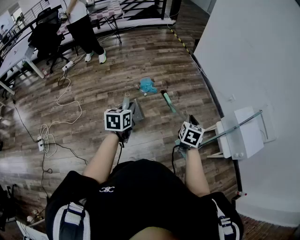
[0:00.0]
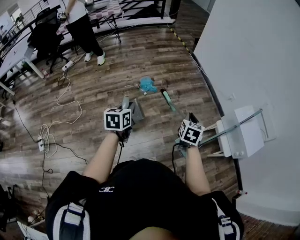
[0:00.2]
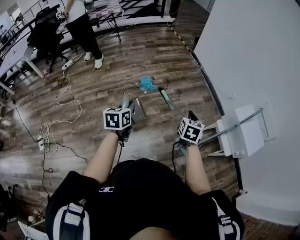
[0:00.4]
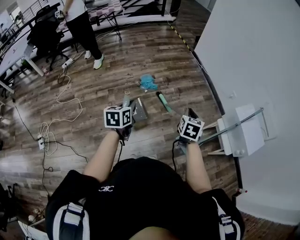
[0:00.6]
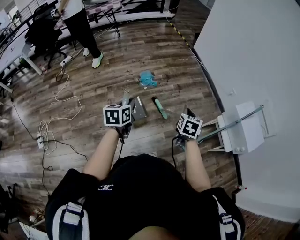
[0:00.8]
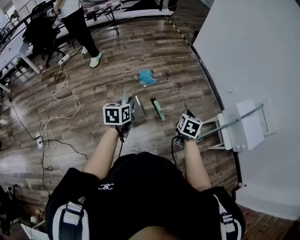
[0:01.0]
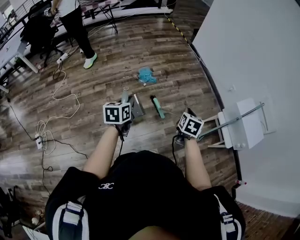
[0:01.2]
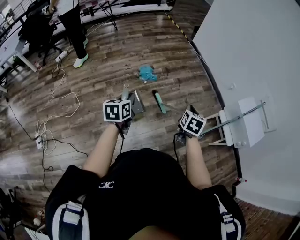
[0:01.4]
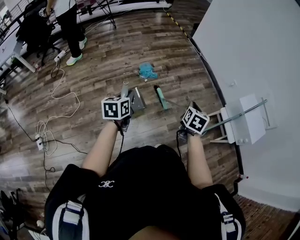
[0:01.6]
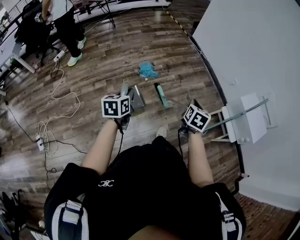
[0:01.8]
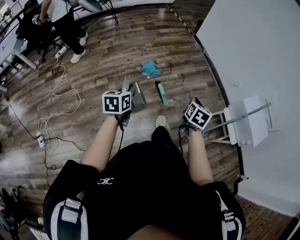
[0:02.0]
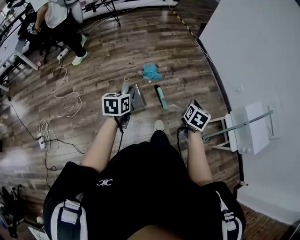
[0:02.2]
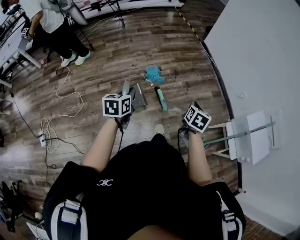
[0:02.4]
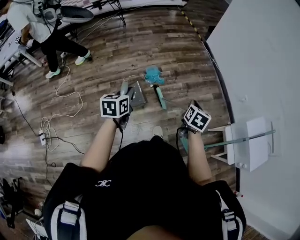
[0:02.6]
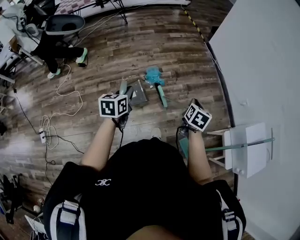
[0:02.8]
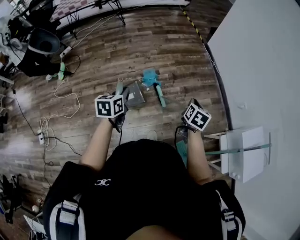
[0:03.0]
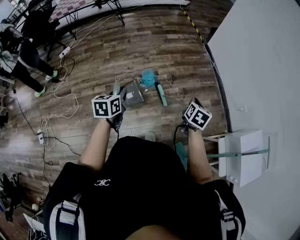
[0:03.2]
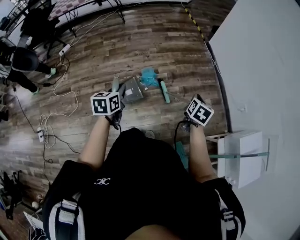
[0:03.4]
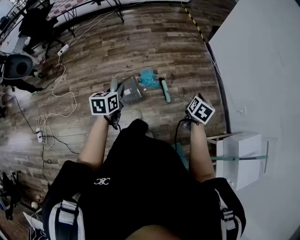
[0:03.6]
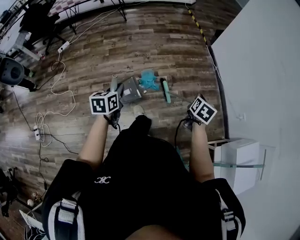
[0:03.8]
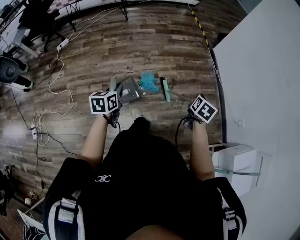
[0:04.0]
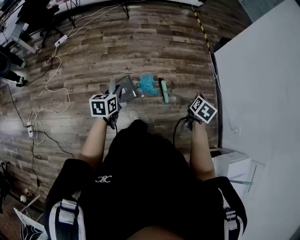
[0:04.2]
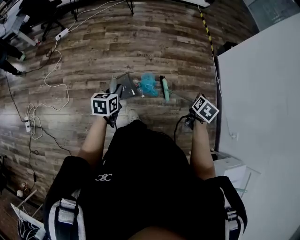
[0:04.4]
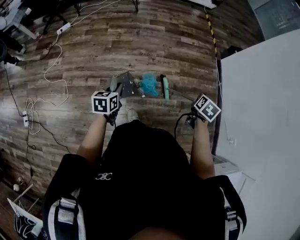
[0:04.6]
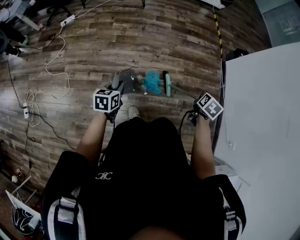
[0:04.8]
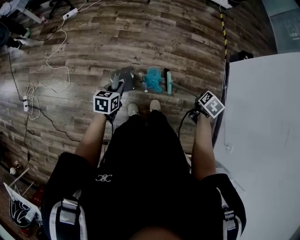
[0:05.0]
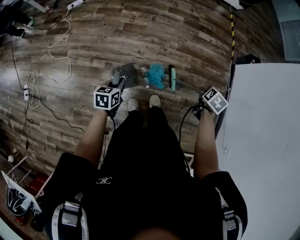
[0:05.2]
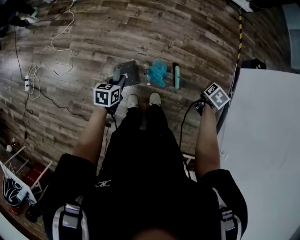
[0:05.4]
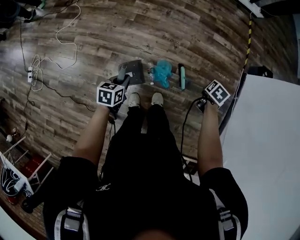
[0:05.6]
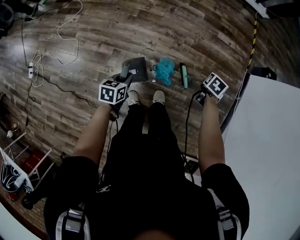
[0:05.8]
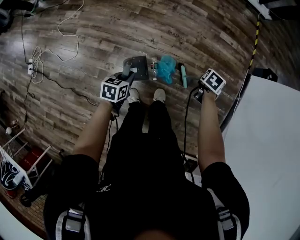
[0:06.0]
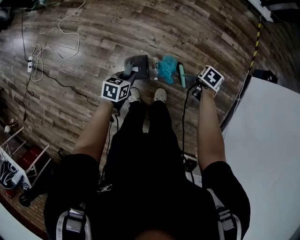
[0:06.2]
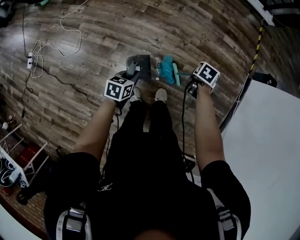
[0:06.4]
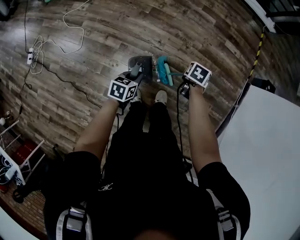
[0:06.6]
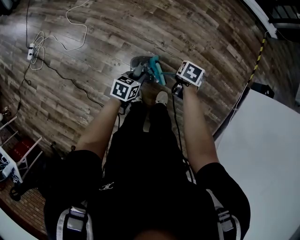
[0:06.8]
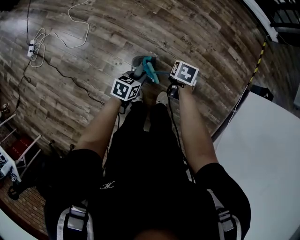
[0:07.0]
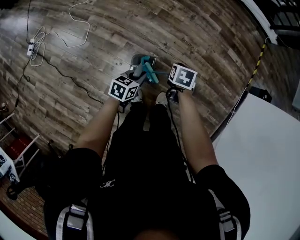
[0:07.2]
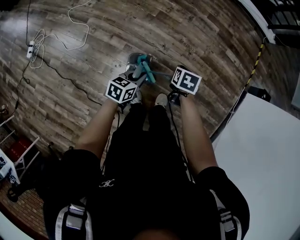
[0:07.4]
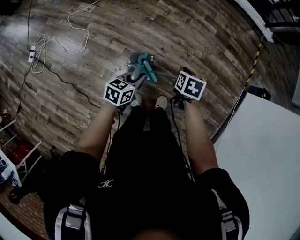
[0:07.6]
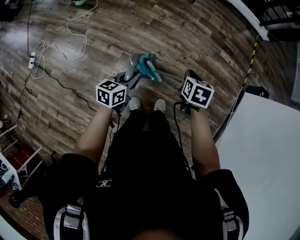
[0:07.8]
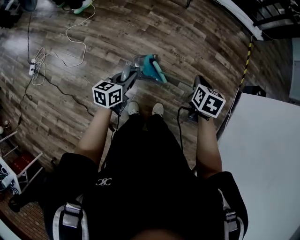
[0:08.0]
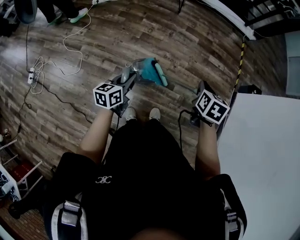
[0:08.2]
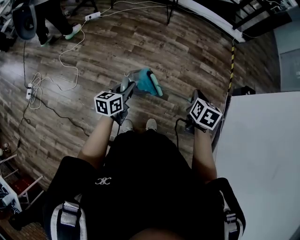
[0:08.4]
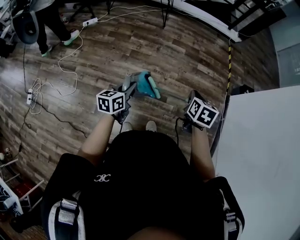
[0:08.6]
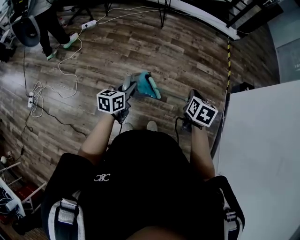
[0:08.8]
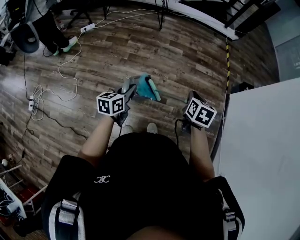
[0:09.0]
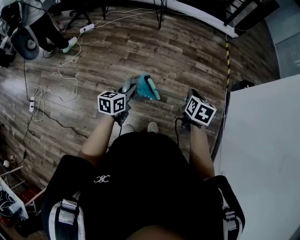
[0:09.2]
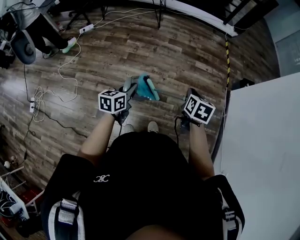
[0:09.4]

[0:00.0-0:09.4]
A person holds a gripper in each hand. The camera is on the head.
0:00.0 to 0:01.6: The two grippers go approximately 10 cm to the left.
0:01.6 to 0:03.2: Both grippers move forward, some 30 cm.
0:03.2 to 0:04.8: The left gripper heads forward, to the left and downward, covering roughly 30 cm; the right gripper is displaced forward and to the left by some 35 cm.
0:04.8 to 0:06.2: The left gripper shifts about 15 cm downward; the right gripper heads downward, forward and to the left, covering approximately 30 cm, and rotates some 30 degrees.
0:06.2 to 0:07.8: The left gripper moves upward, some 10 cm, and rotates some 20 degrees. Meanwhile the right gripper moves about 25 cm, and rotates roughly 30 degrees.
0:07.8 to 0:09.4: The left gripper travels to the right and upward by some 15 cm. The right gripper heads to the right and upward, covering about 25 cm, and turns by about 20 degrees.

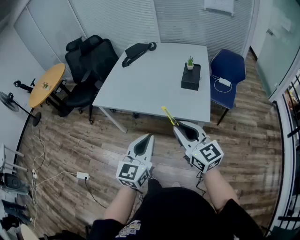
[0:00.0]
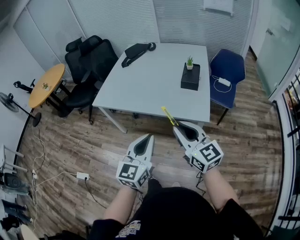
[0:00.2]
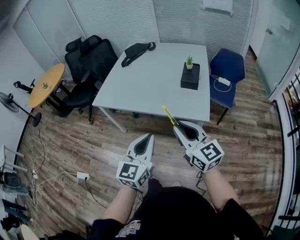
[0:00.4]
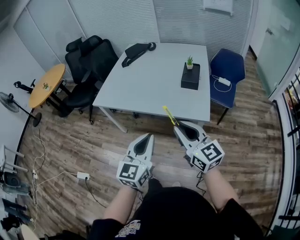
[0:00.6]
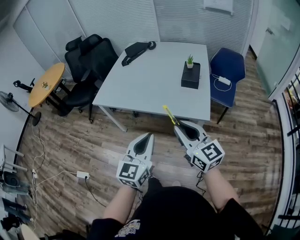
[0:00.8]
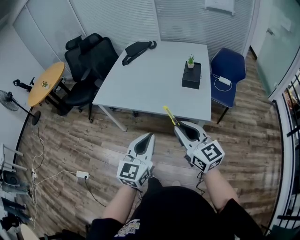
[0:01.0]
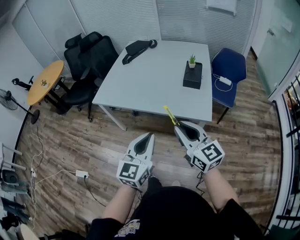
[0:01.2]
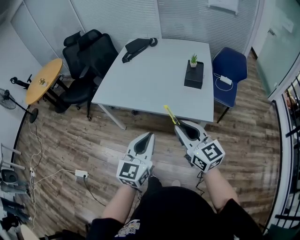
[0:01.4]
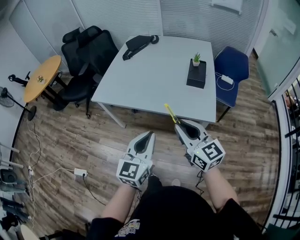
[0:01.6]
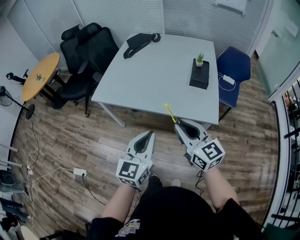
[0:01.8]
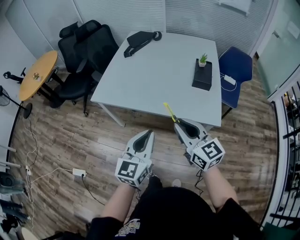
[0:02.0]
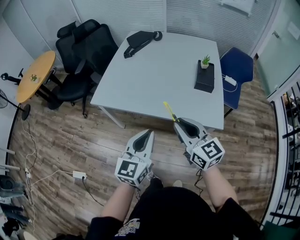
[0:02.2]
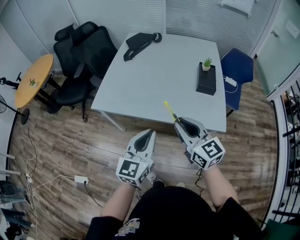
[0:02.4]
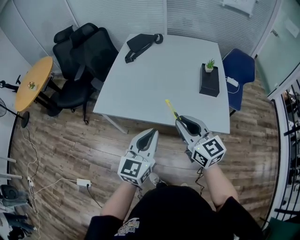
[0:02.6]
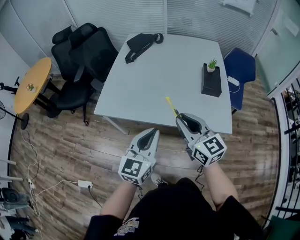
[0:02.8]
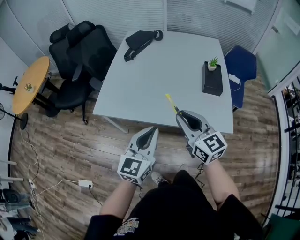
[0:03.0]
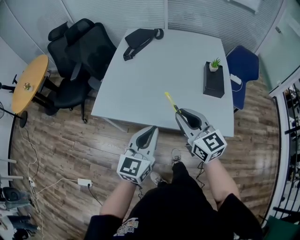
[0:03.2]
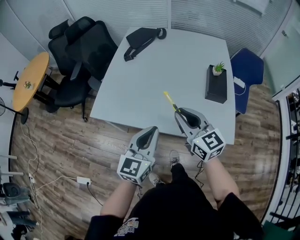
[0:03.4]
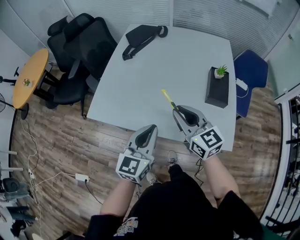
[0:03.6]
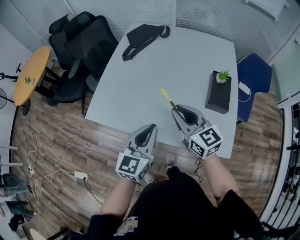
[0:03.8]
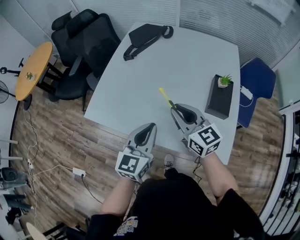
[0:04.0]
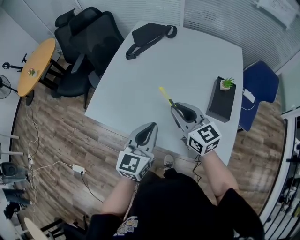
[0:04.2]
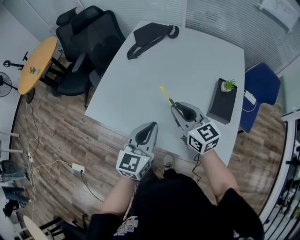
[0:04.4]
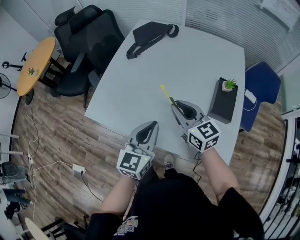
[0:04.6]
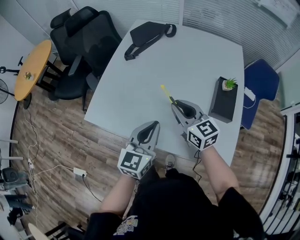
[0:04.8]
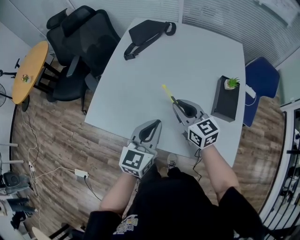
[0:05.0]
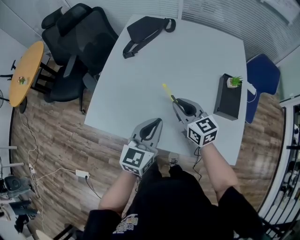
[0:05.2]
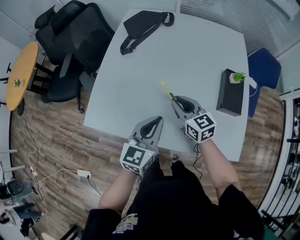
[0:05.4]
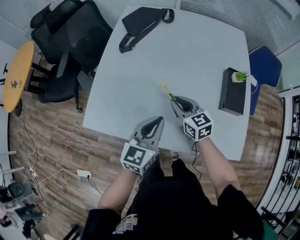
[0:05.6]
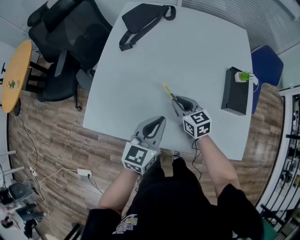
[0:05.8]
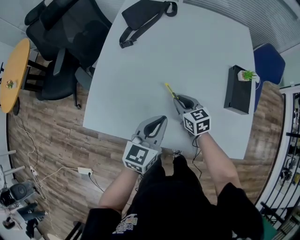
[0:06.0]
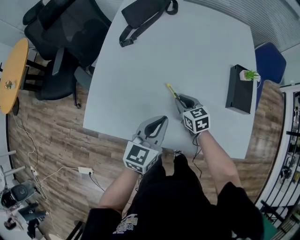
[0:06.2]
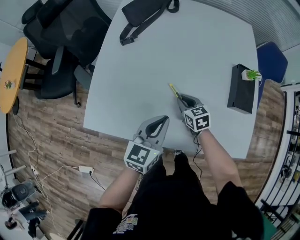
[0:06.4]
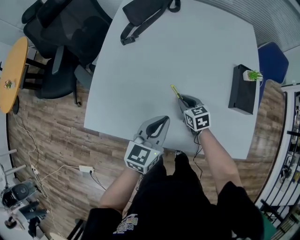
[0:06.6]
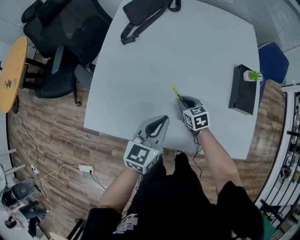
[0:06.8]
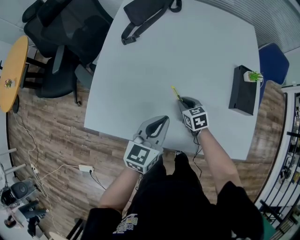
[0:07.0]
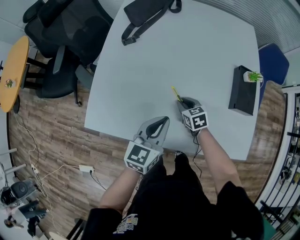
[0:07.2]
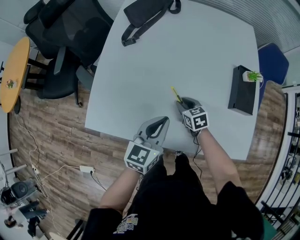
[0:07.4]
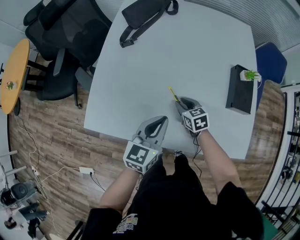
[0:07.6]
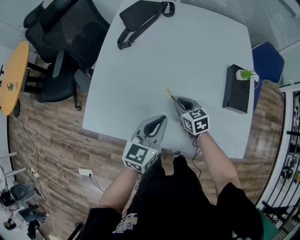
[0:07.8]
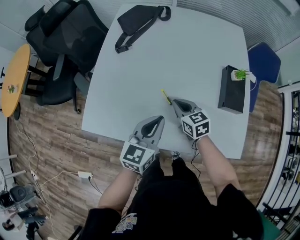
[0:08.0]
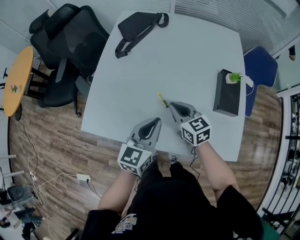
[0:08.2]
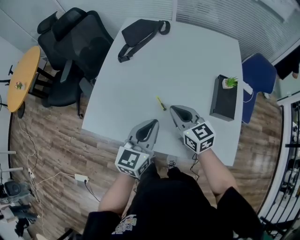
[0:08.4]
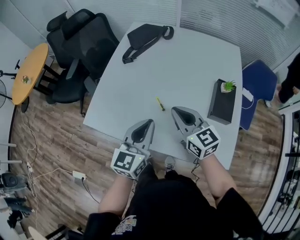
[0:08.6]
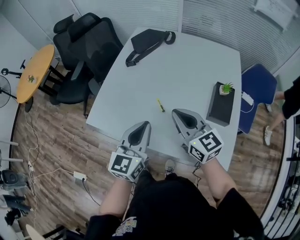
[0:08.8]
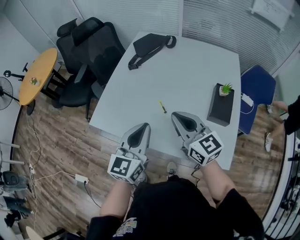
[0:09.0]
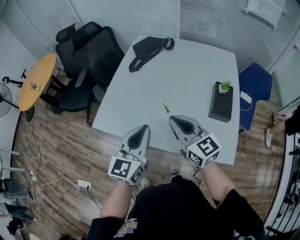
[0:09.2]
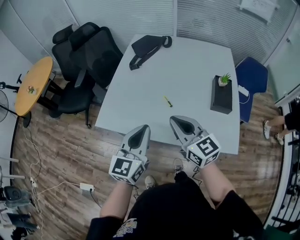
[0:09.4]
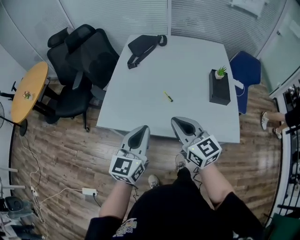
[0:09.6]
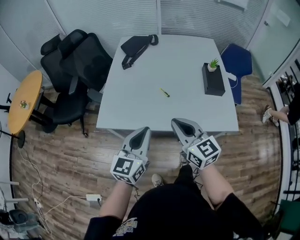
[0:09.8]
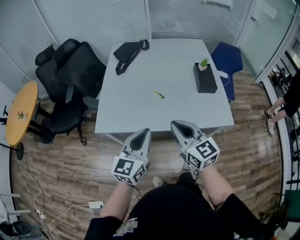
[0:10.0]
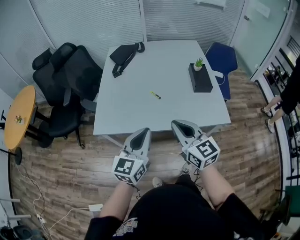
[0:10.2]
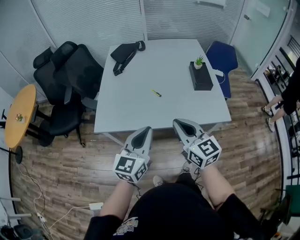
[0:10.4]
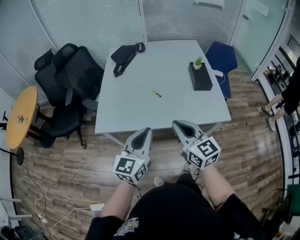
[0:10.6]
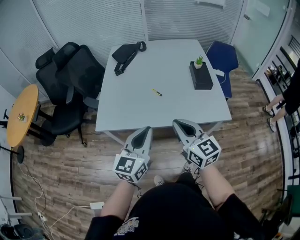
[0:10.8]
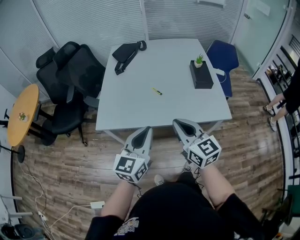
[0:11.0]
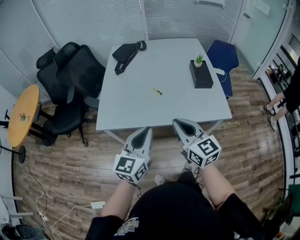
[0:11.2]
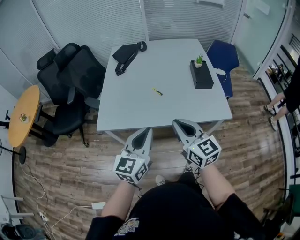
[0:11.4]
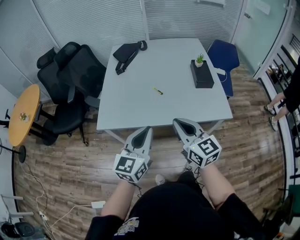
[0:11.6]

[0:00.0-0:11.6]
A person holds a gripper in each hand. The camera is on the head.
0:00.0 to 0:01.4: The grippers move only a little.
0:01.4 to 0:02.8: Both grippers move forward and to the left, approximately 20 cm.
0:02.8 to 0:04.4: The right gripper moves forward, about 25 cm, while the left gripper travels forward and to the right by some 20 cm.
0:04.4 to 0:05.8: The right gripper heads downward and forward, covering approximately 20 cm, and swivels roughly 20 degrees, while the left gripper shifts roughly 15 cm forward, downward and to the left.
0:05.8 to 0:07.2: The right gripper shifts roughly 10 cm downward.
0:07.2 to 0:08.8: The right gripper travels upward by about 35 cm, angles its fingers upward, by about 40 degrees, and closes up. Meanwhile the left gripper is displaced upward and backward by approximately 15 cm, and turns by some 20 degrees.
0:08.8 to 0:10.2: Both grippers move backward and to the left, roughly 20 cm. The left gripper swivels approximately 20 degrees. The right gripper changes its angle by some 20 degrees.
0:10.2 to 0:11.6: There are only small adjustments of the grippers.

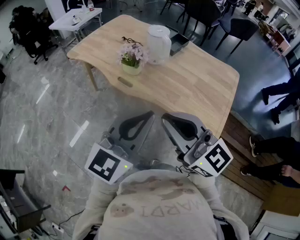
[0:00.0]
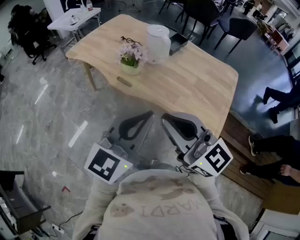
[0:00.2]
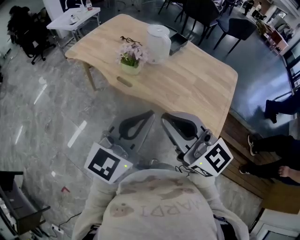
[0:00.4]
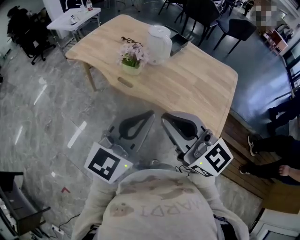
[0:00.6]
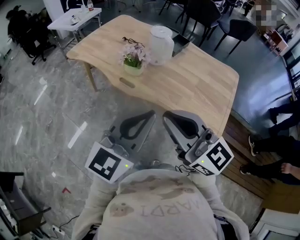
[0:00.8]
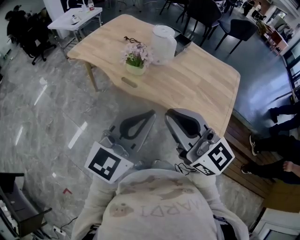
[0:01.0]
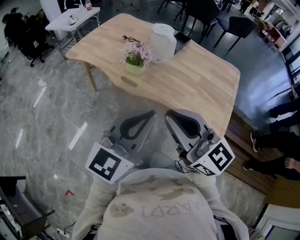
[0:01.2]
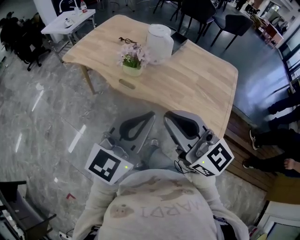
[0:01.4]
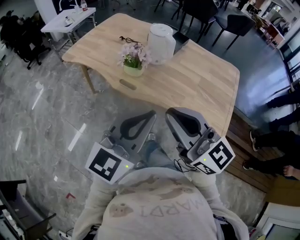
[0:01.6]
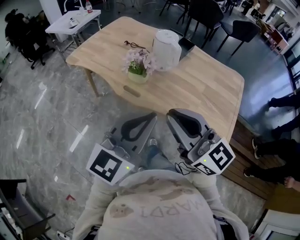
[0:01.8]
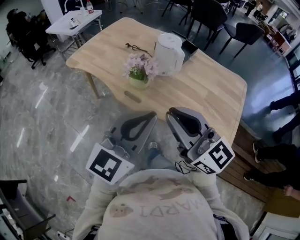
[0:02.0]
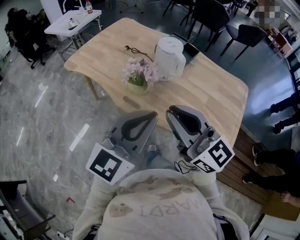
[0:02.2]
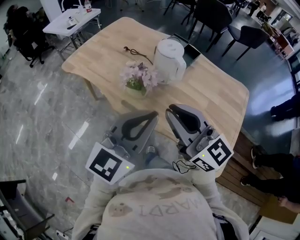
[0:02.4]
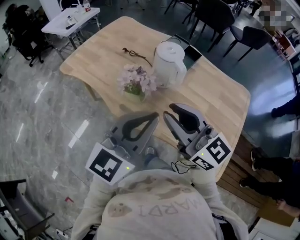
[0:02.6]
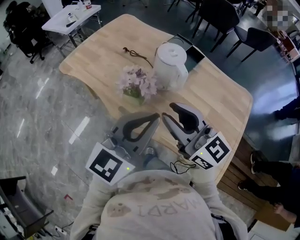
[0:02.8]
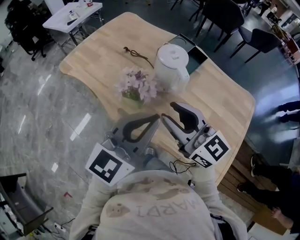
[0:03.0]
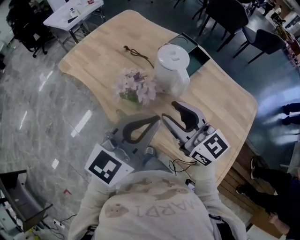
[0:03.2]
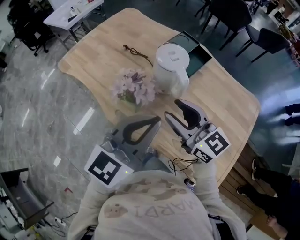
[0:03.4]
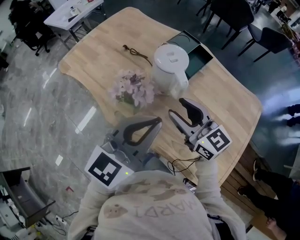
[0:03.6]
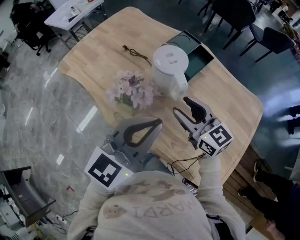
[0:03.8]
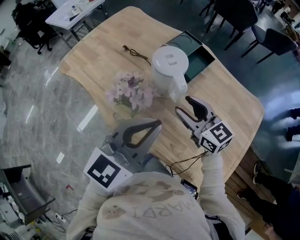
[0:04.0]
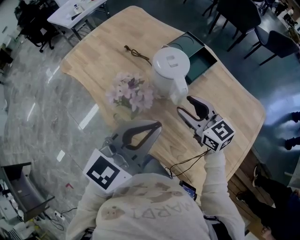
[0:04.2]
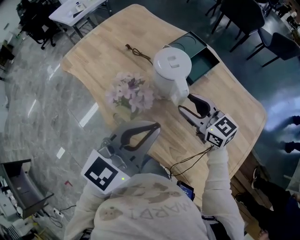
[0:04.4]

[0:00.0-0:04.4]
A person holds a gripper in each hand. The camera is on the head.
0:00.0 to 0:01.4: The left gripper changes place by some 5 cm.
0:01.4 to 0:03.0: The grippers both shift forward by some 30 cm. The right gripper opens.
0:03.0 to 0:04.4: The right gripper travels forward, downward and to the right by approximately 20 cm, while the left gripper goes some 10 cm forward and to the right.
